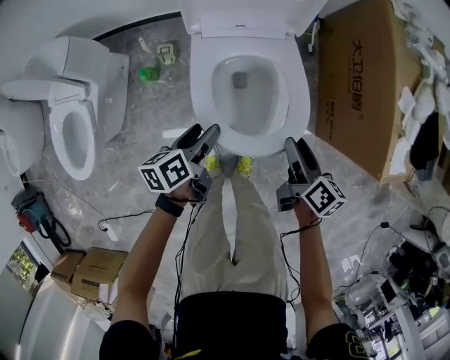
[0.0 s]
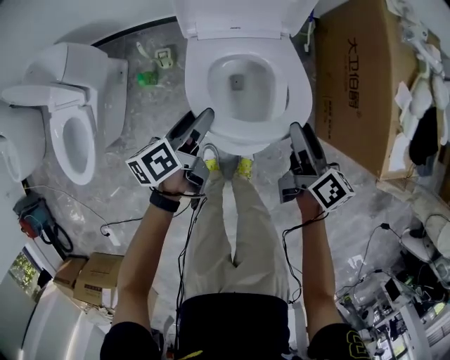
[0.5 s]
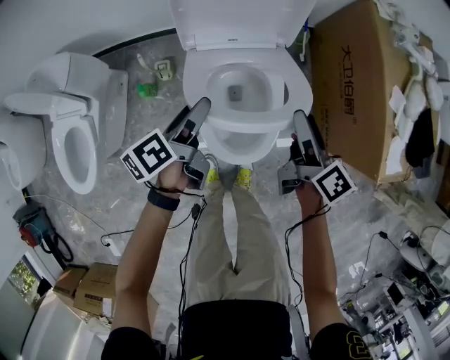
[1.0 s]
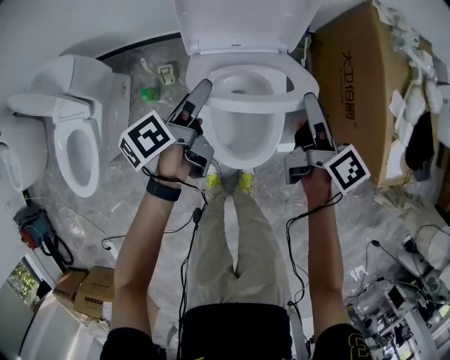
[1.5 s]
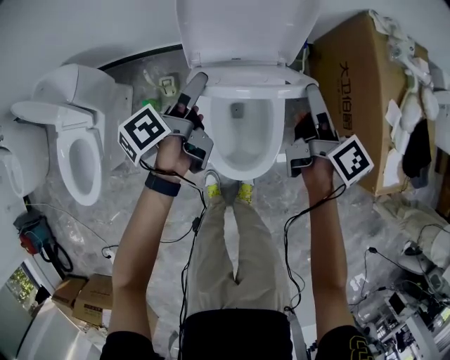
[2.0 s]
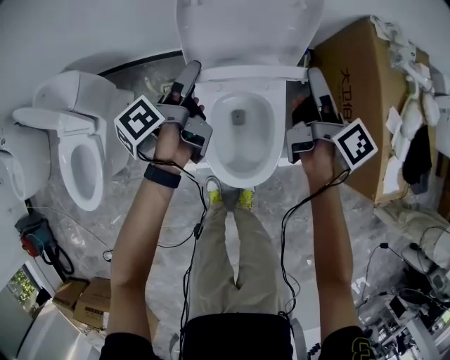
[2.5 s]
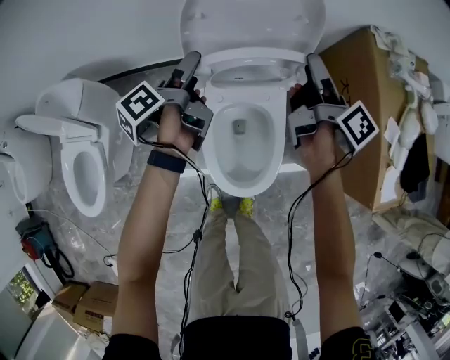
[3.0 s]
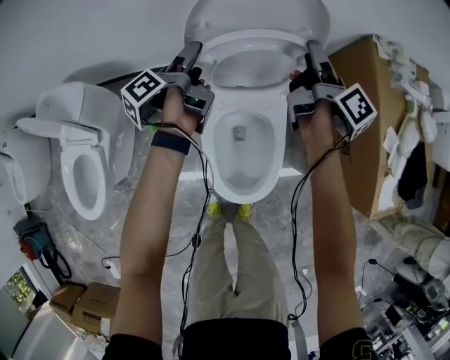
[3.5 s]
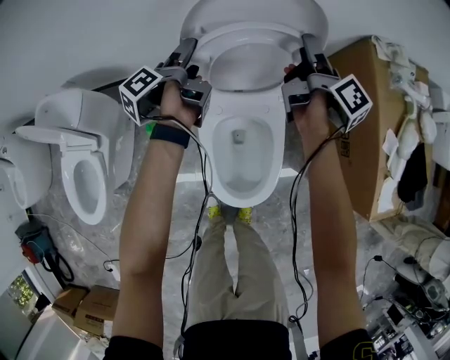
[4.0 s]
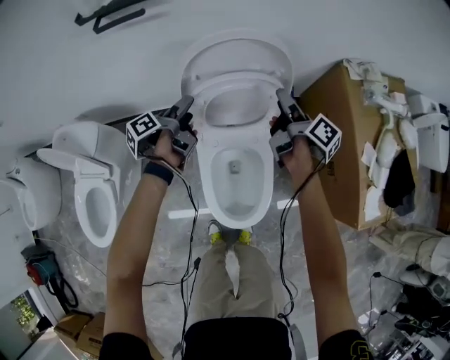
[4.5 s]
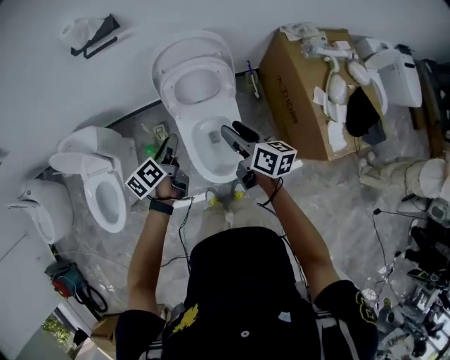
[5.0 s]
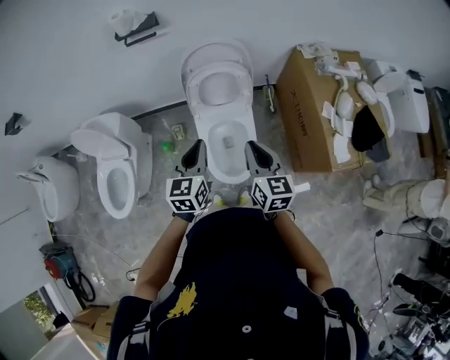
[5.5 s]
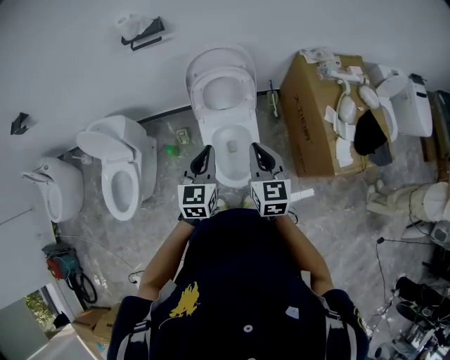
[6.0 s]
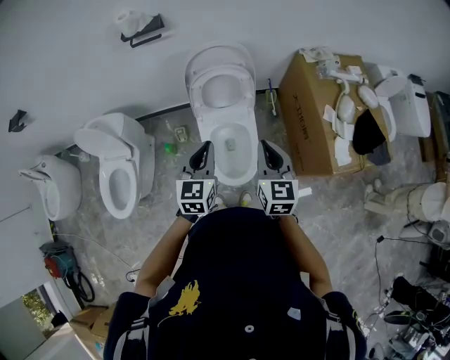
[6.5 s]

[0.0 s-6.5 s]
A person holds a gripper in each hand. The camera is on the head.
0.0 to 2.0 s: Both grippers move forward and upward, some 20 cm. The right gripper rotates approximately 20 degrees; the left gripper rotates approximately 30 degrees.
2.0 to 4.5 s: Both grippers move forward, roughly 15 cm.
4.5 to 6.5 s: Both grippers travel together backward and upward, roughly 40 cm. The left gripper twists about 90 degrees clockwise, seen from behind, and closes up. Meanwhile the right gripper rolls counterclockwise, seen from behind, by some 70 degrees, and closes up.

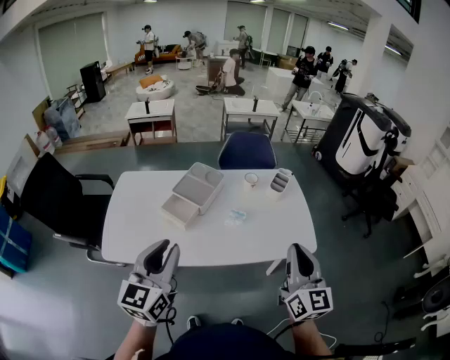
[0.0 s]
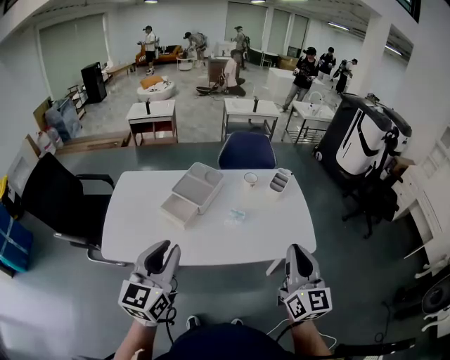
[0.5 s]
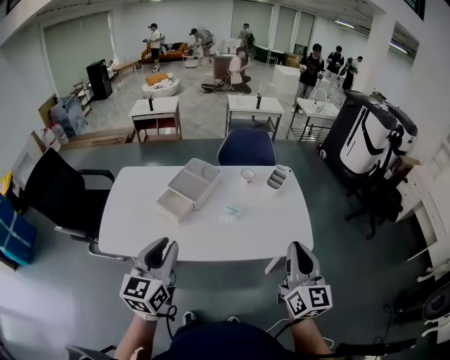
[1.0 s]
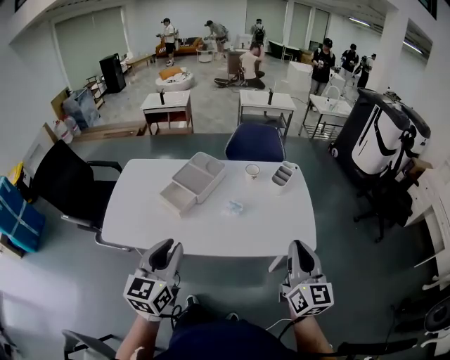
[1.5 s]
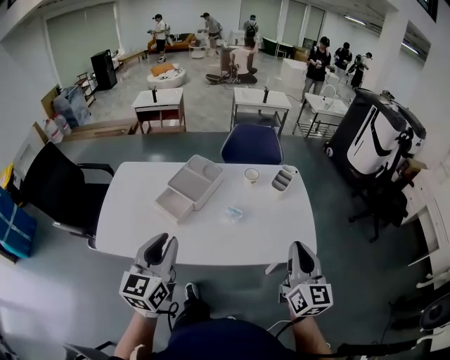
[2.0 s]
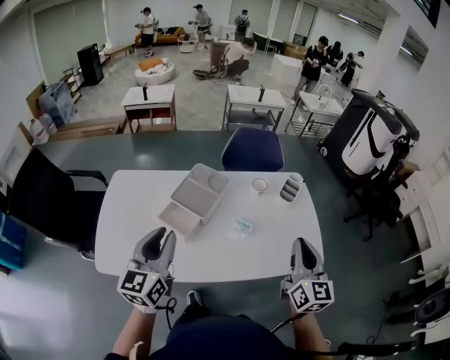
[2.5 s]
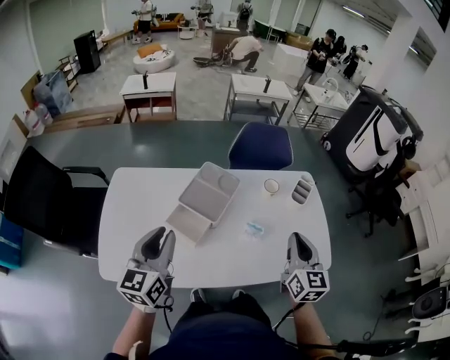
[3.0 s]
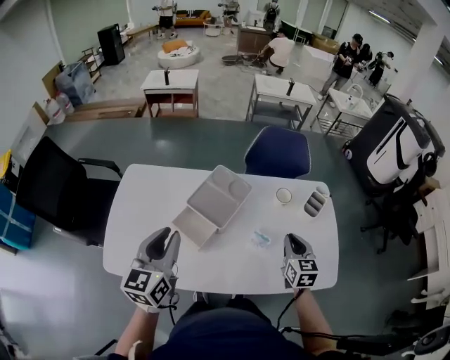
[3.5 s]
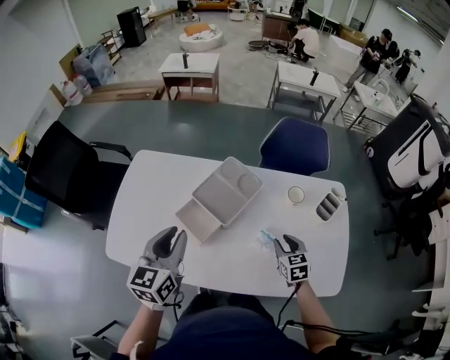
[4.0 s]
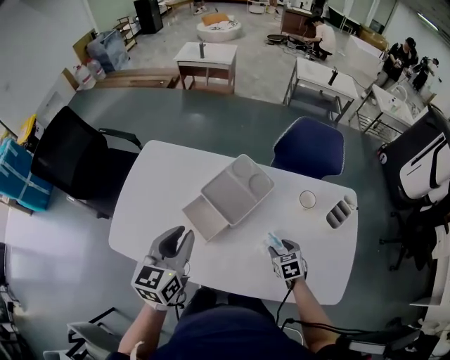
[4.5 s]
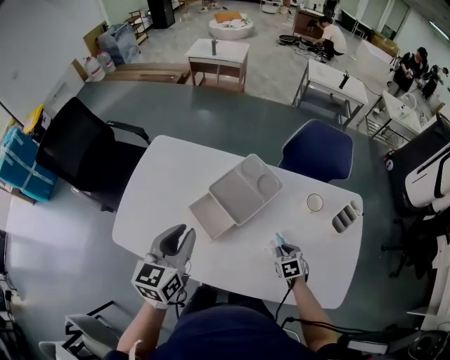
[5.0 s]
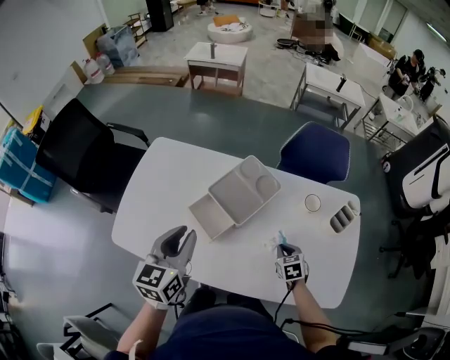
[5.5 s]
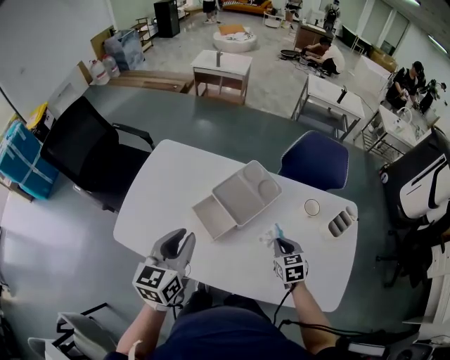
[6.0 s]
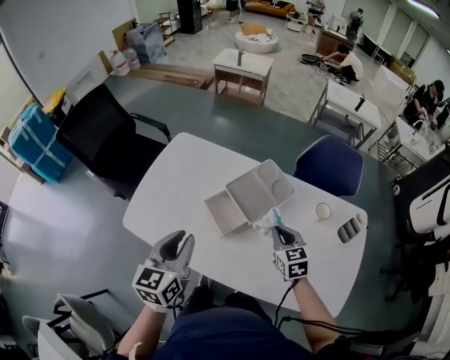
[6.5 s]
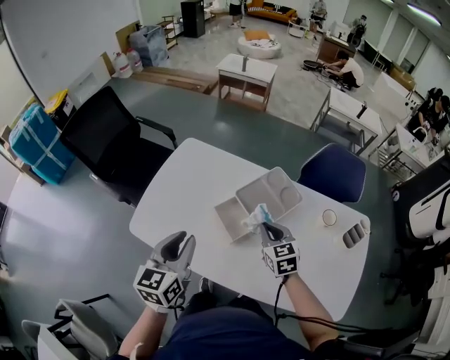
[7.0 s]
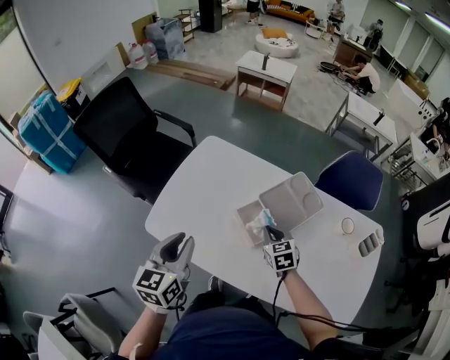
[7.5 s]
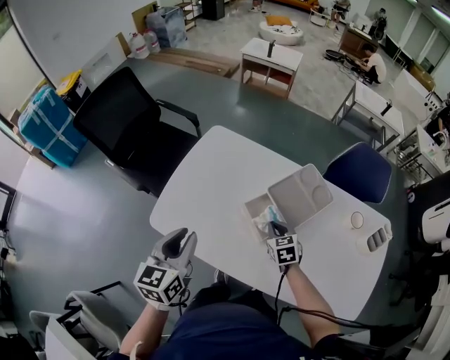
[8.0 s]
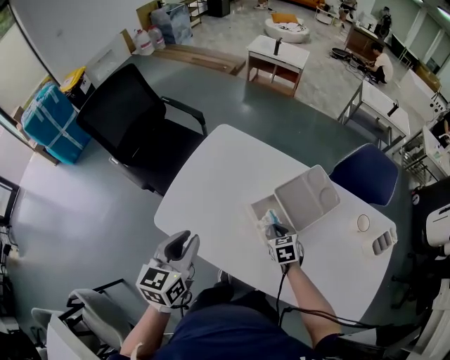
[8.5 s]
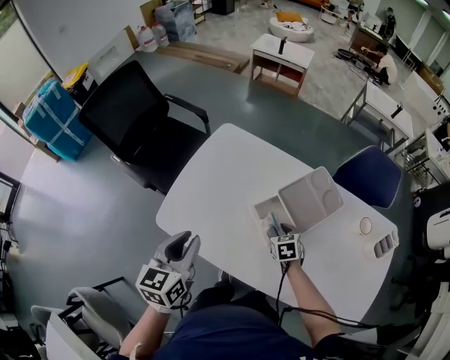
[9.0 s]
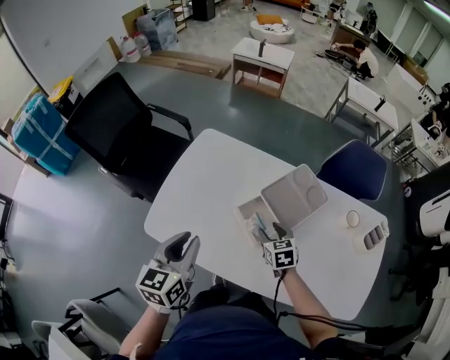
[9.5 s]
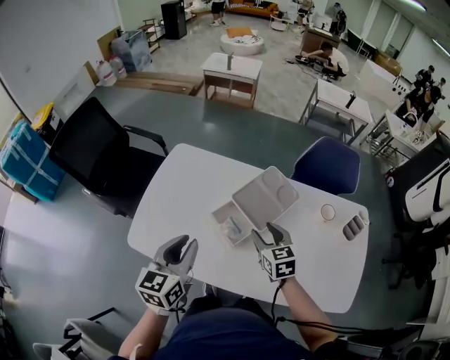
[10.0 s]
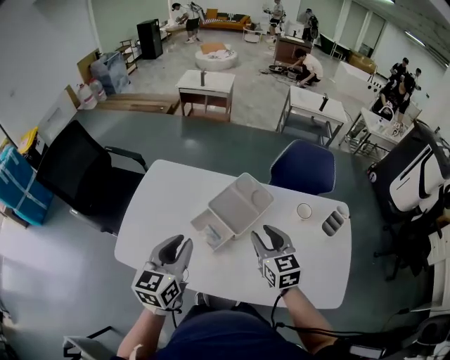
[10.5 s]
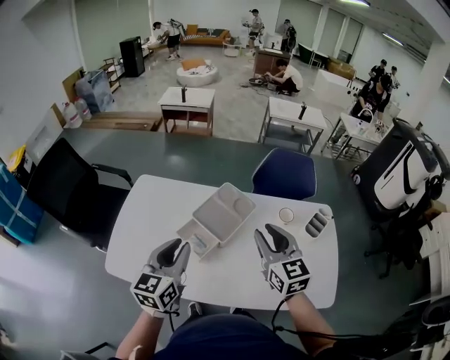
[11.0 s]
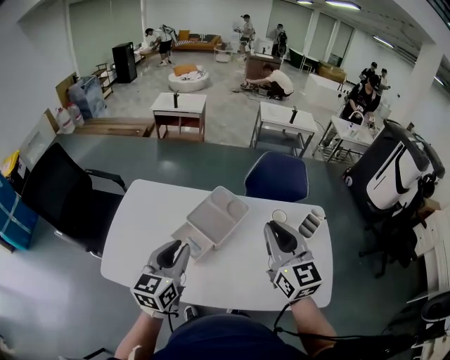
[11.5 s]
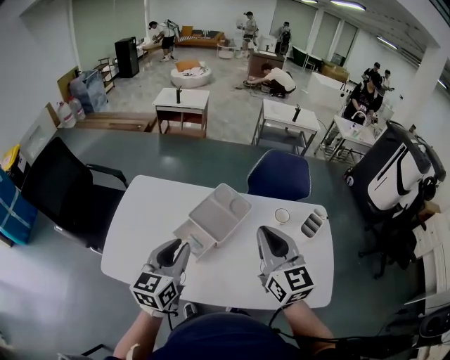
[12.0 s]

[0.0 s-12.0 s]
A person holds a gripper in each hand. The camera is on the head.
0.0 to 2.0 s: The left gripper changes place by roughly 10 cm, while the right gripper moves to the right and forward, about 10 cm.
2.0 to 4.0 s: The right gripper heads downward, forward and to the left, covering roughly 40 cm, tips its fingers downward by approximately 40 degrees, and opens its fingers. Meanwhile the left gripper travels forward and to the left by roughly 20 cm.
4.0 to 6.0 s: The right gripper goes about 5 cm to the left, moves some 10 cm downward and comes back, and closes.
6.0 to 8.0 s: Both grippers travel together to the left, roughly 20 cm.
8.0 to 10.0 s: The left gripper heads to the right, covering roughly 10 cm. Meanwhile the right gripper shifts approximately 15 cm upward and to the right, and opens its fingers.
10.0 to 12.0 s: The right gripper shifts roughly 25 cm upward and to the right, turns by some 30 degrees, and closes up. The left gripper moves to the right, roughly 10 cm.

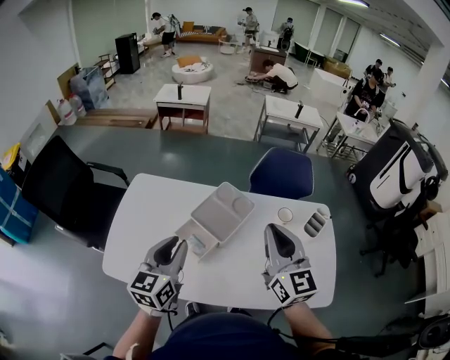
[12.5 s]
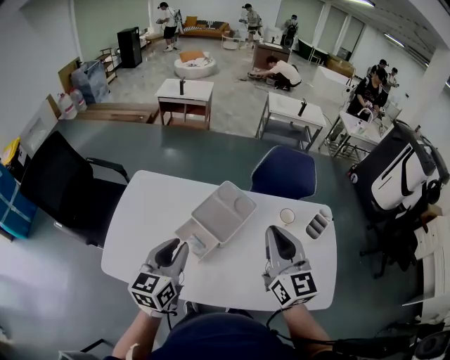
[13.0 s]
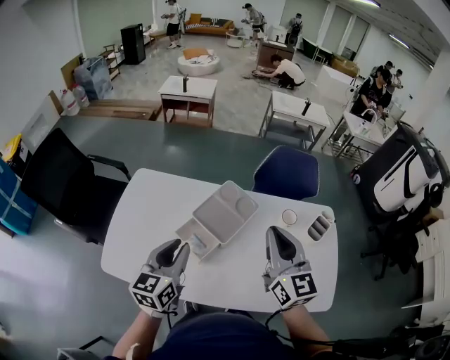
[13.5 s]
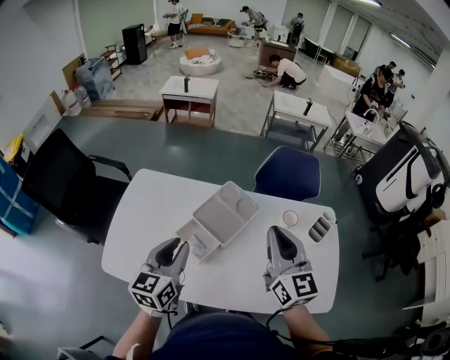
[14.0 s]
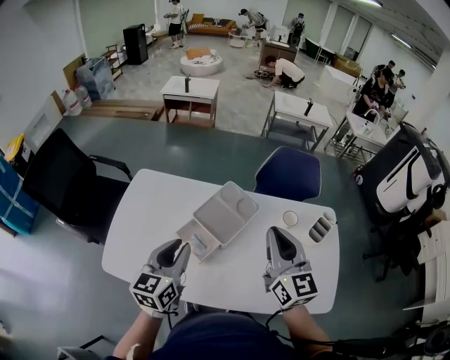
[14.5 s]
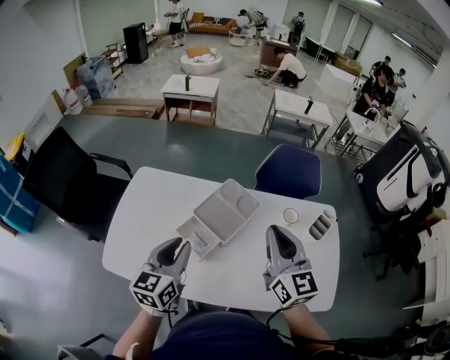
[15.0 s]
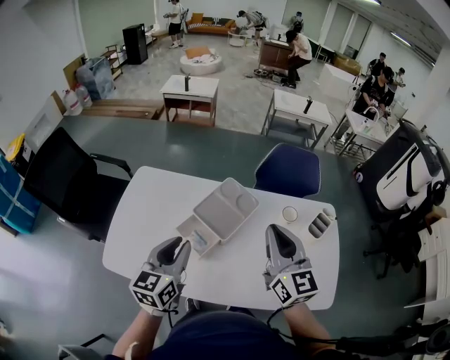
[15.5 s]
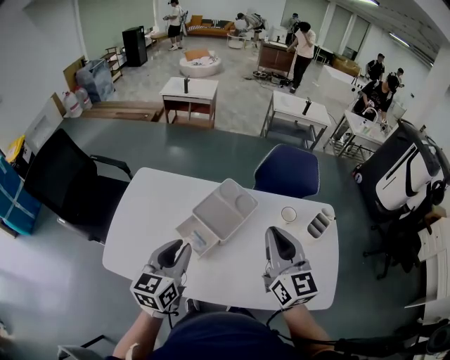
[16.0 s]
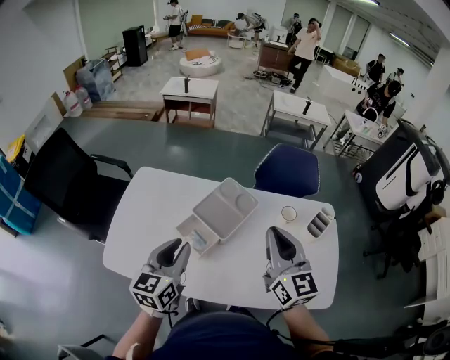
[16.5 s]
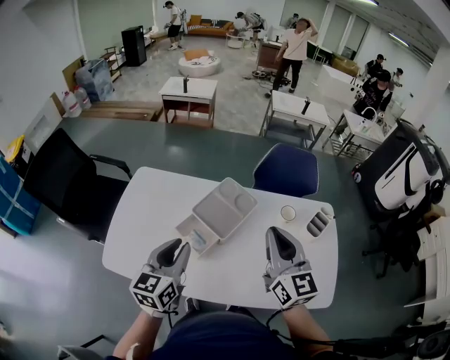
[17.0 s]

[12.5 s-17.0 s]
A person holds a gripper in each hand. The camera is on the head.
12.5 to 17.0 s: The grippers stay close to where they were, moving slightly.

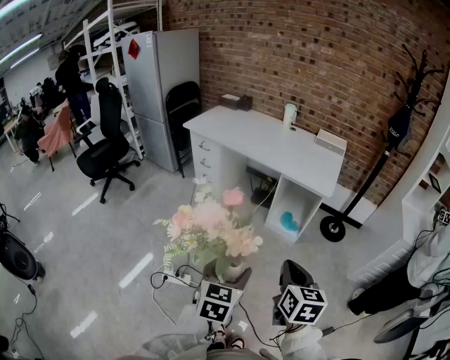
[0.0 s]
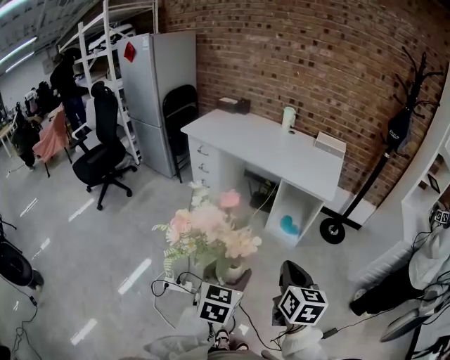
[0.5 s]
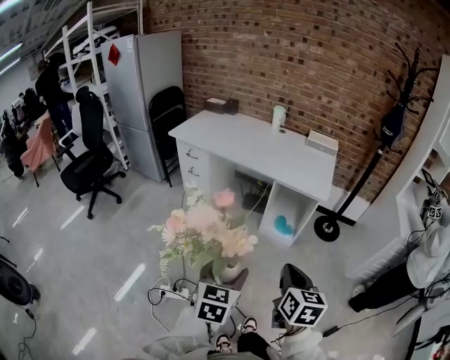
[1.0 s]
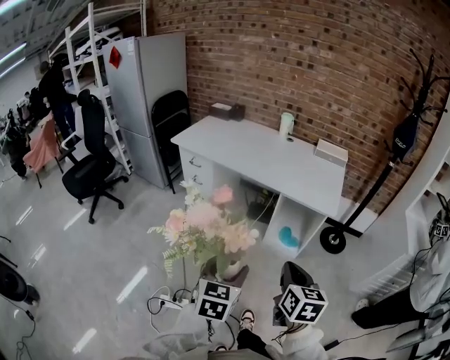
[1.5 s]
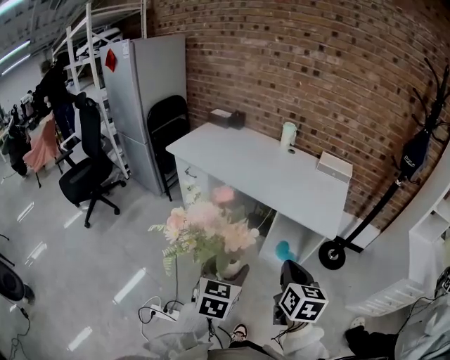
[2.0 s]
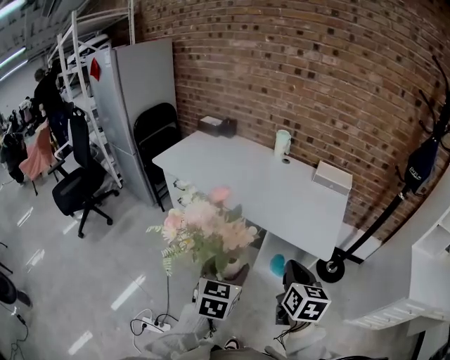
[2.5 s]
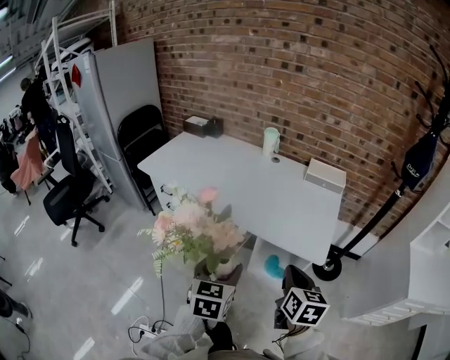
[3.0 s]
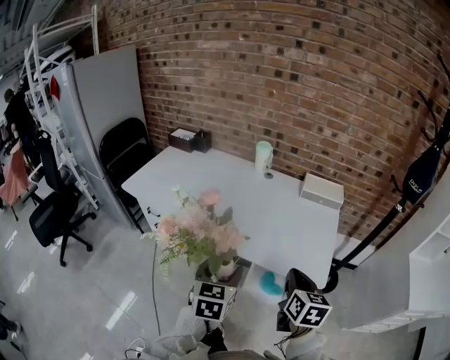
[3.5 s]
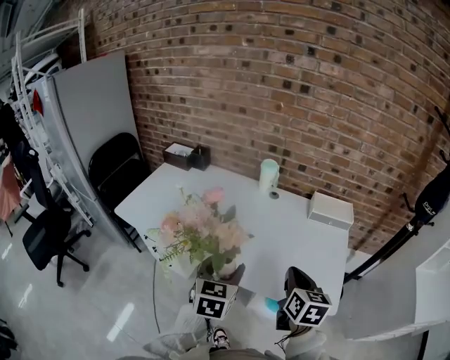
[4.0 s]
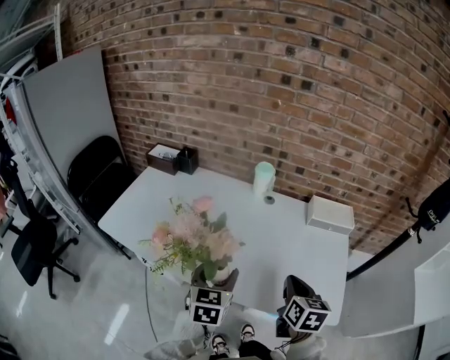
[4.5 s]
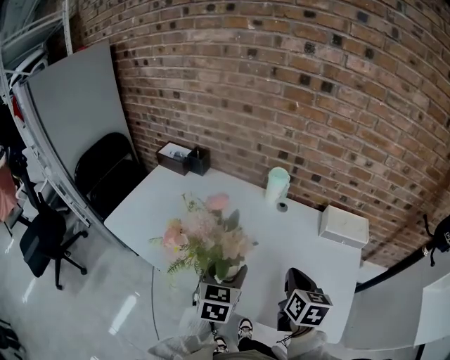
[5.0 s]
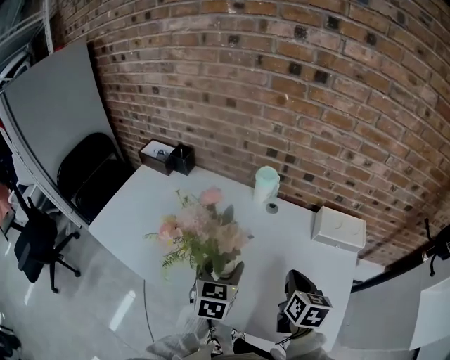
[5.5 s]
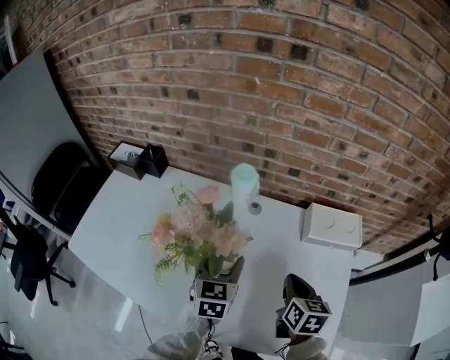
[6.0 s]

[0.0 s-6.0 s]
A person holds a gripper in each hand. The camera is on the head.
0.0 to 2.0 s: The two grippers go approximately 25 cm forward.
2.0 to 4.0 s: The two grippers travel together, forward, about 40 cm.
4.0 to 6.0 s: The left gripper is displaced forward by about 30 cm, while the right gripper shifts approximately 25 cm forward and downward.
